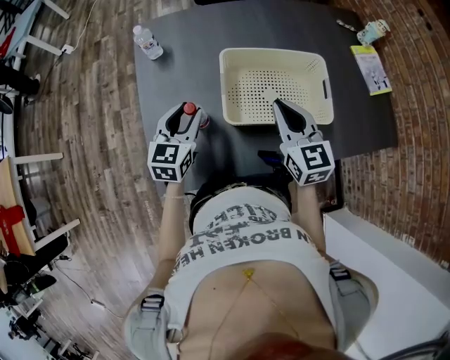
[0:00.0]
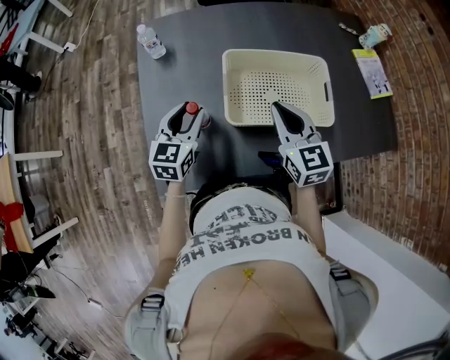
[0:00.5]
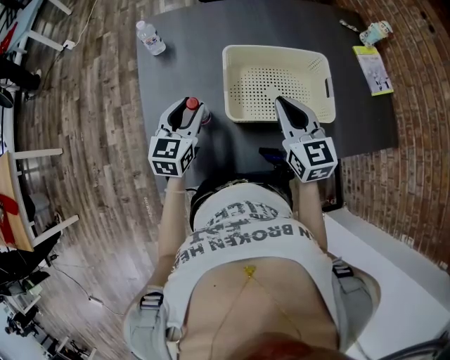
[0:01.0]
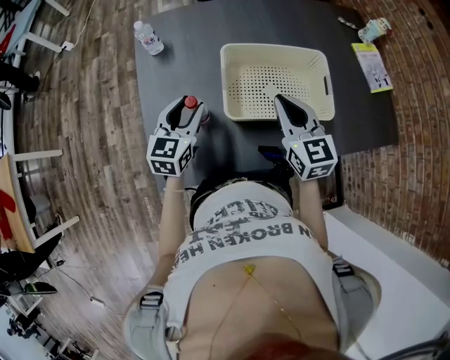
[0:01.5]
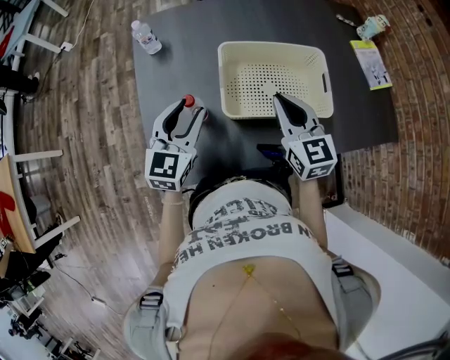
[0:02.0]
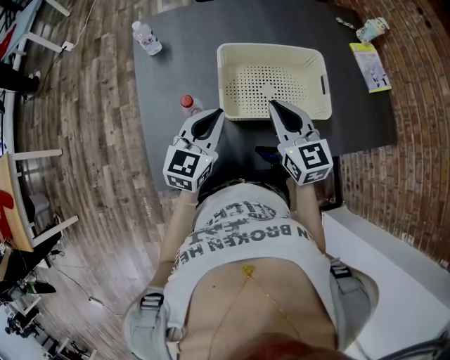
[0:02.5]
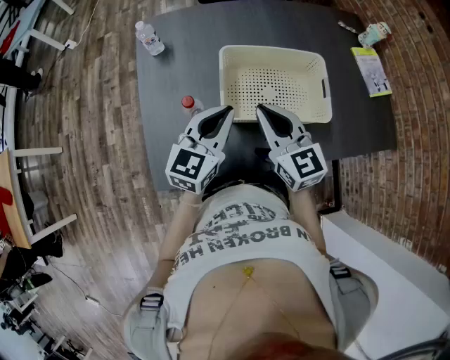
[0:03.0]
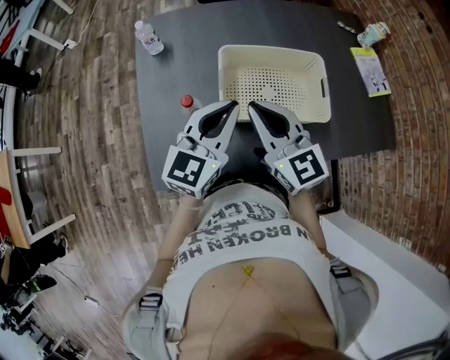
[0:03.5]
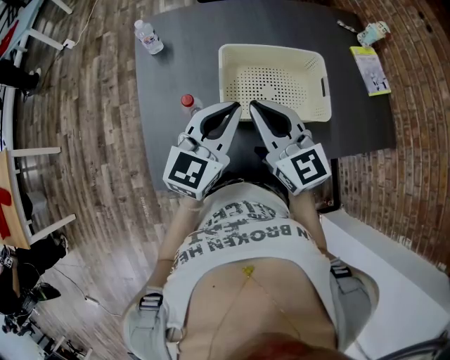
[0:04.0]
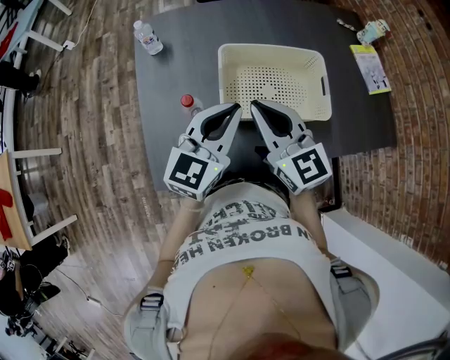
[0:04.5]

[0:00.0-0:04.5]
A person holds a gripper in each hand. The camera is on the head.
0:00.0 to 0:02.0: The left gripper ends up approximately 5 cm from where it was.
0:02.0 to 0:04.5: The left gripper goes some 10 cm to the right and upward, and closes up. Meanwhile the right gripper shifts roughly 10 cm to the left and upward.

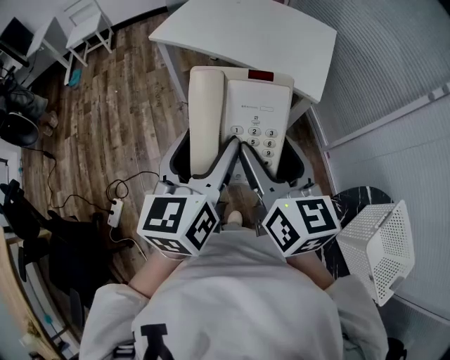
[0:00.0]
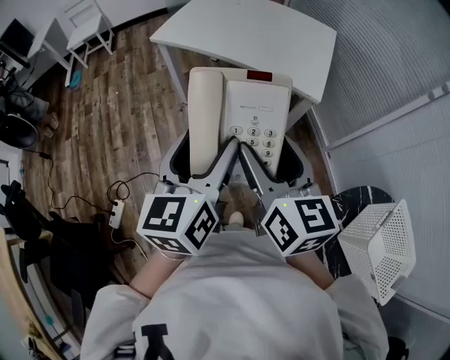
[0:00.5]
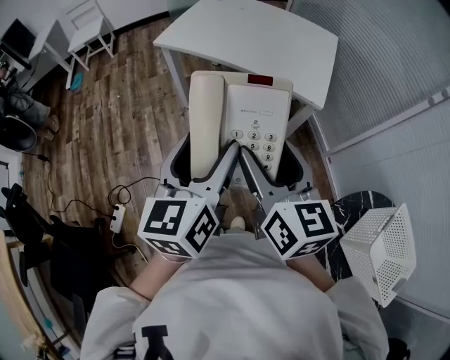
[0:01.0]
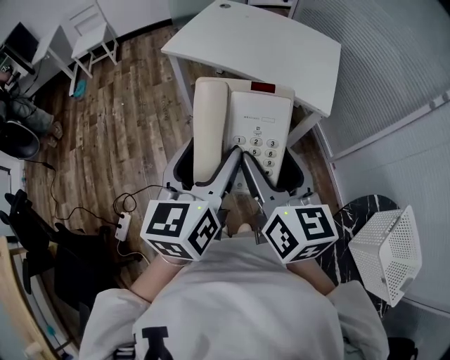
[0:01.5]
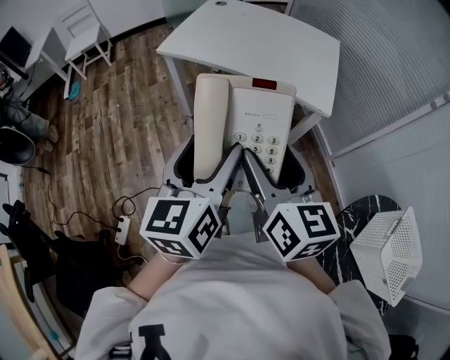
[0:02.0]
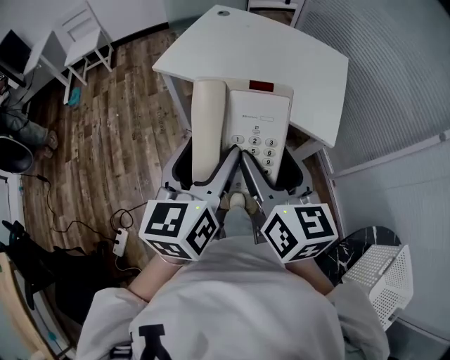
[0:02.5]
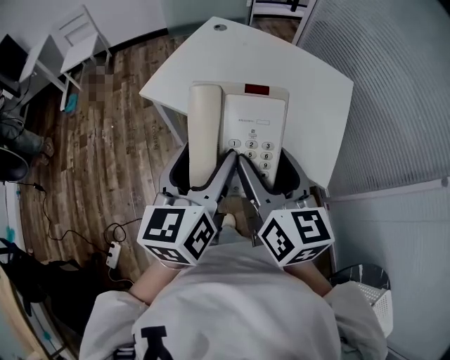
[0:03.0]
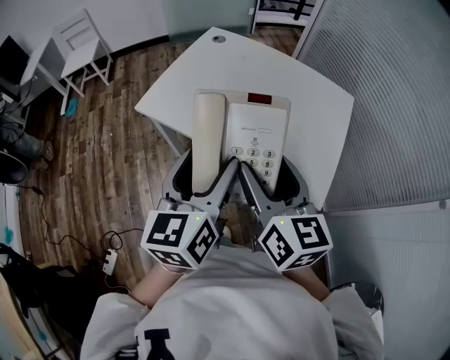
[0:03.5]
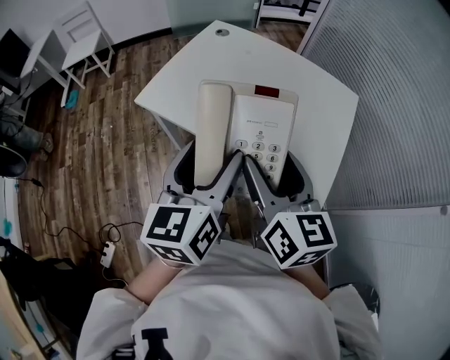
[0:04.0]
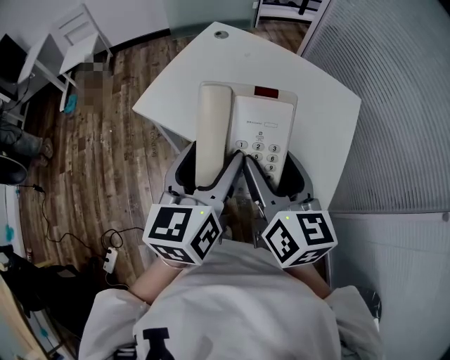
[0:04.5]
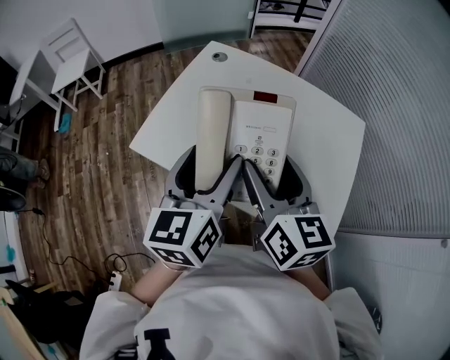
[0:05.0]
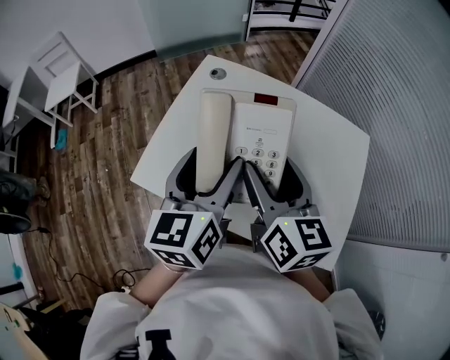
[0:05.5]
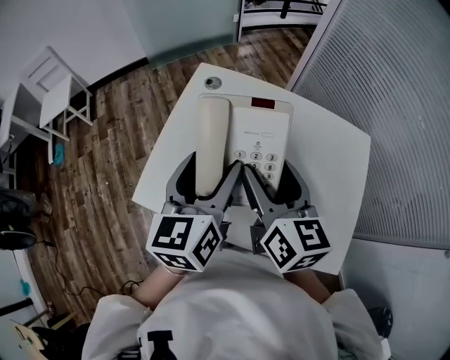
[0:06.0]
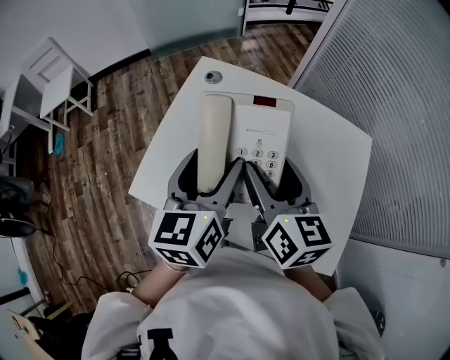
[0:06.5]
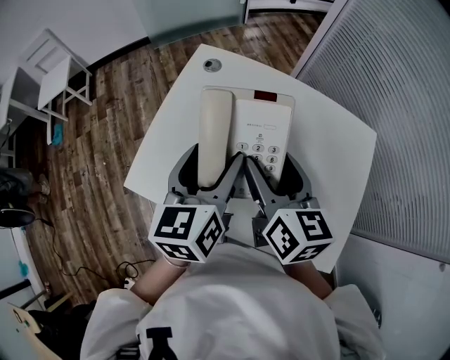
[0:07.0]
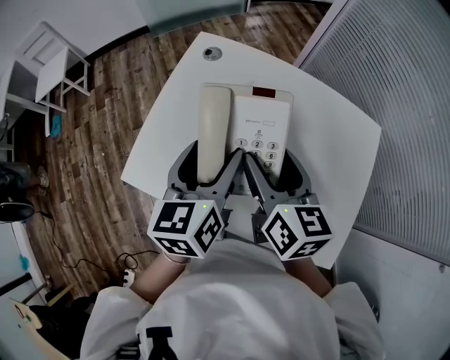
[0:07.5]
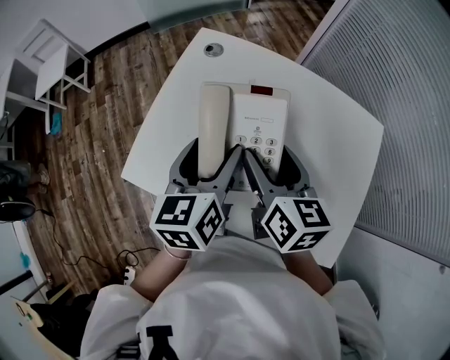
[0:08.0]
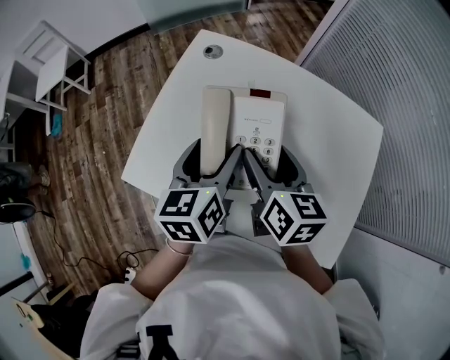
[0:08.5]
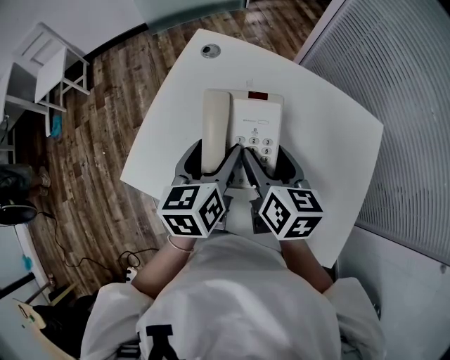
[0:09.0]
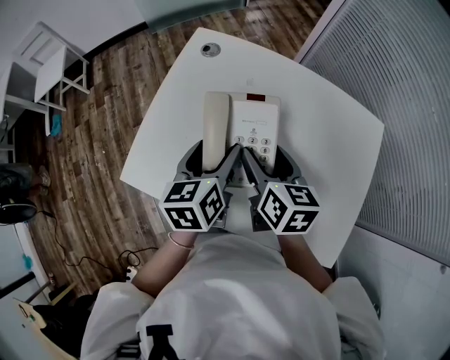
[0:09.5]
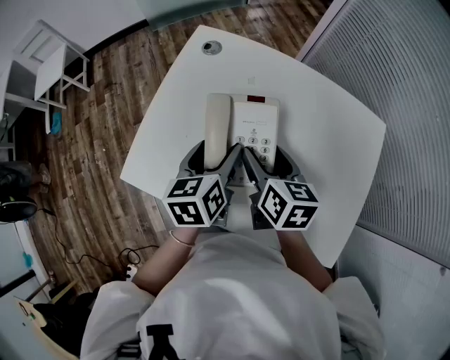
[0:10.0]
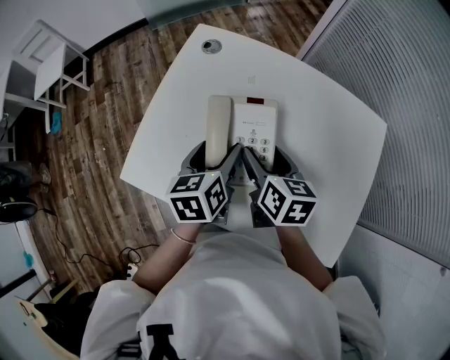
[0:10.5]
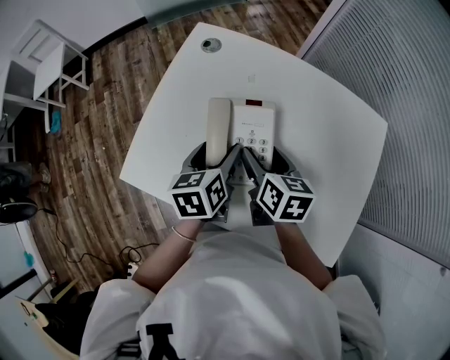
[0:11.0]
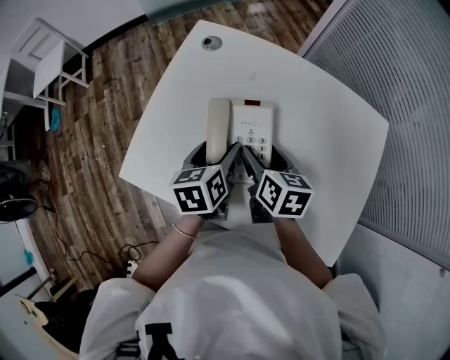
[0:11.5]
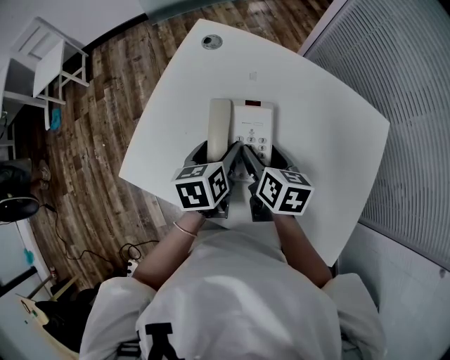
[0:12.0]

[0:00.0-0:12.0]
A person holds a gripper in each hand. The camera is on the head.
0:00.0 to 0:02.0: The two grippers go roughly 5 cm to the left.
0:02.0 to 0:04.0: Both grippers move forward, roughly 30 cm.
0:04.0 to 0:06.0: Both grippers move forward, some 30 cm.
0:06.0 to 0:08.0: Both grippers move downward, some 5 cm.
0:08.0 to 0:10.0: Both grippers move downward, some 10 cm.
0:10.0 to 0:12.0: Both grippers move downward, some 5 cm.

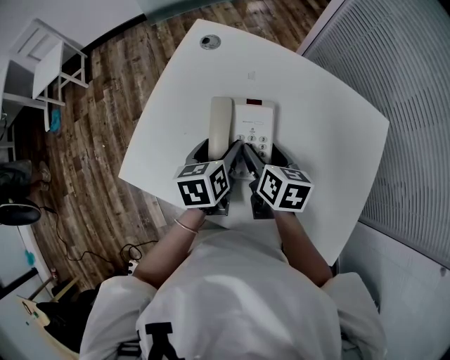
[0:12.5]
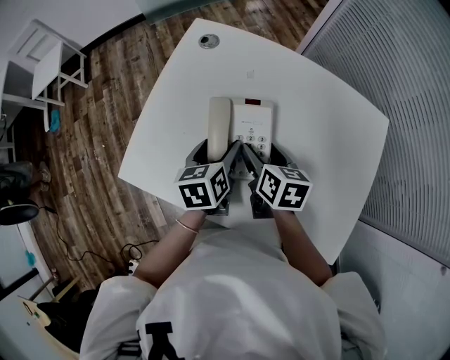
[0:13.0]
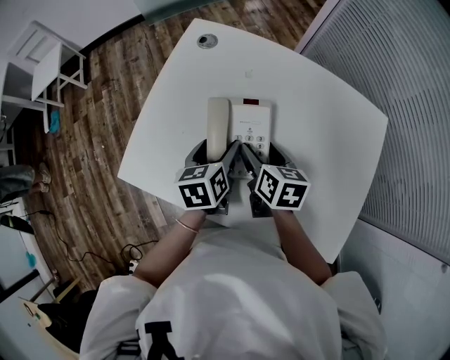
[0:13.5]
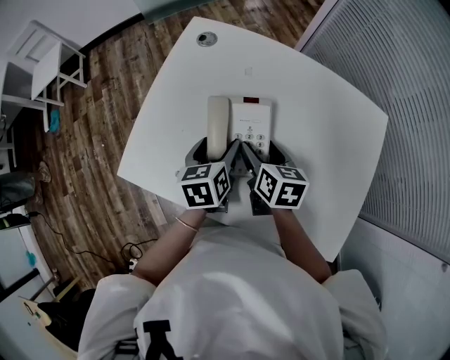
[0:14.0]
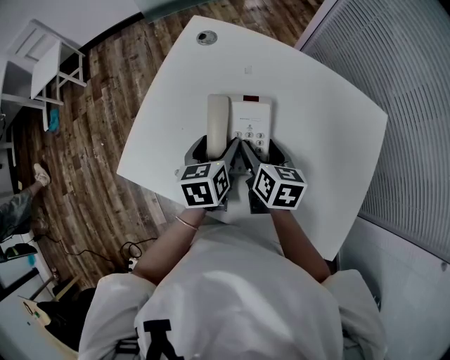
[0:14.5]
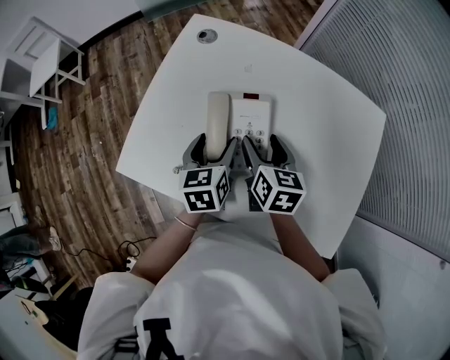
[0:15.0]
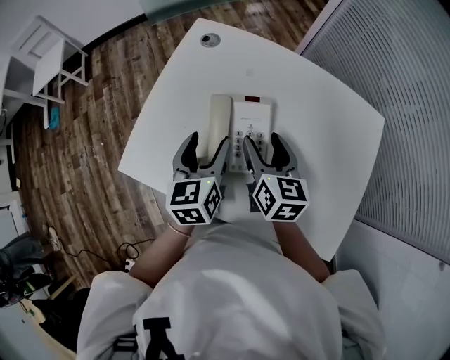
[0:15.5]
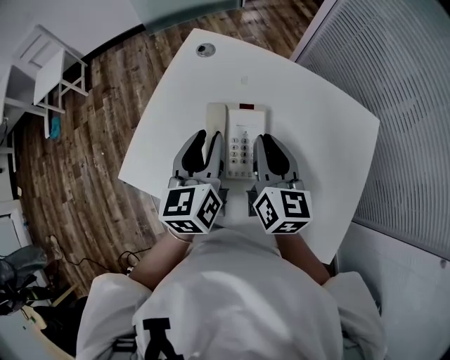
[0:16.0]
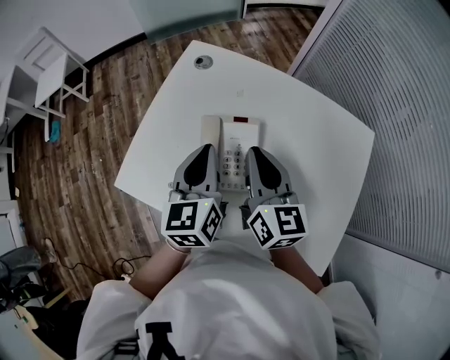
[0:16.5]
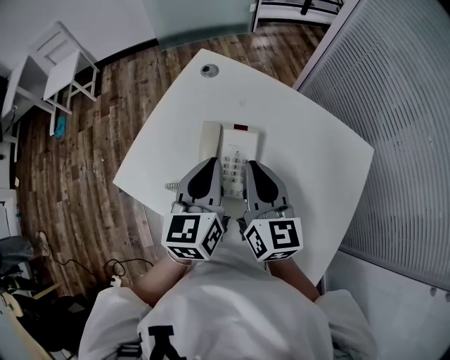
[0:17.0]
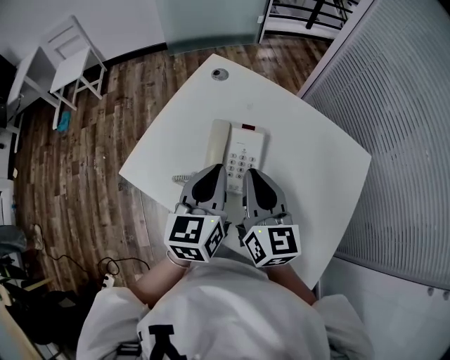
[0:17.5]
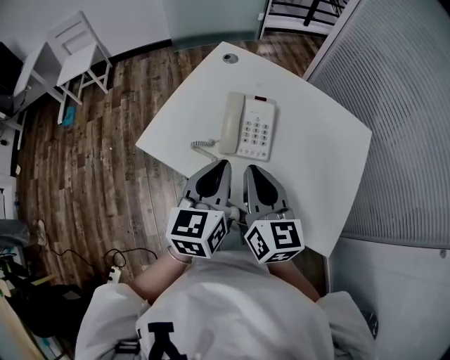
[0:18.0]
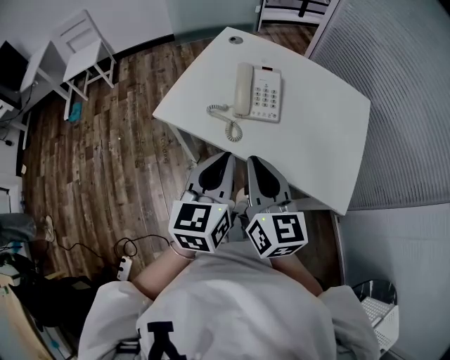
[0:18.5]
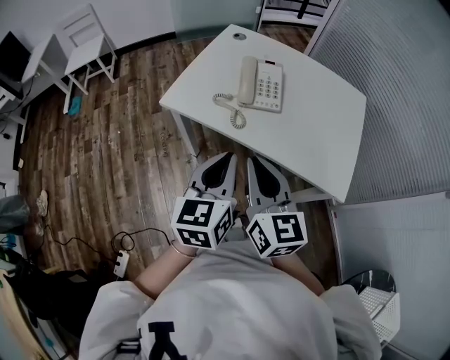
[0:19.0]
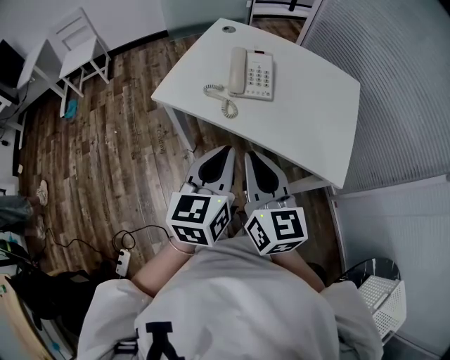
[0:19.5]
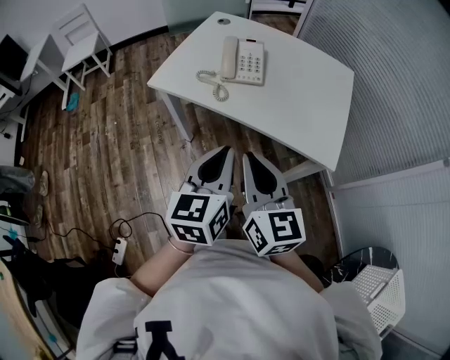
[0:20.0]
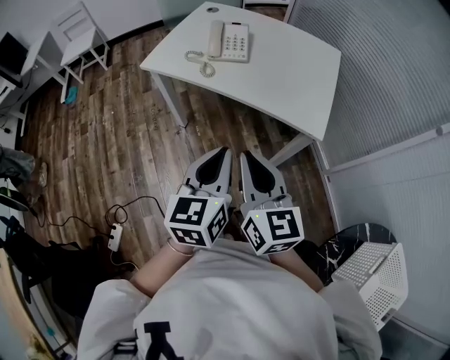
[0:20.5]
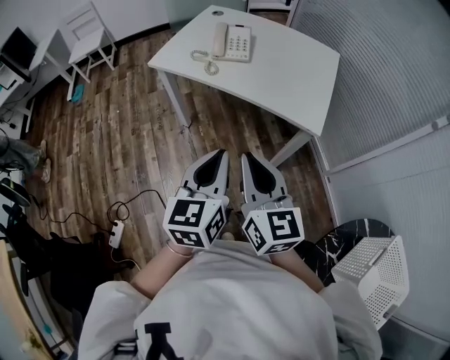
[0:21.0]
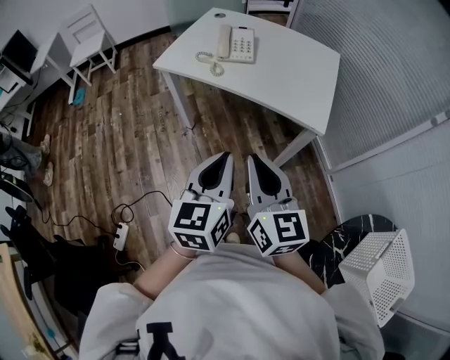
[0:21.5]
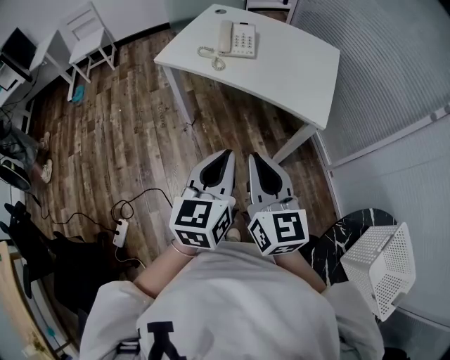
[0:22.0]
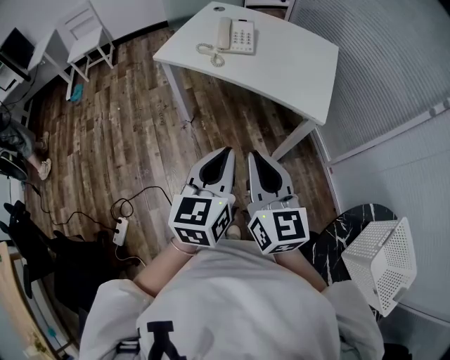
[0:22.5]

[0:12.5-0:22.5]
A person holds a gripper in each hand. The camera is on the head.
0:12.5 to 0:14.5: There are only small adjustments of the grippers.
0:14.5 to 0:16.5: The grippers both shift upward by some 15 cm. The right gripper rotates about 30 degrees, and closes its fingers, while the left gripper swivels roughly 30 degrees, and closes its fingers.
0:16.5 to 0:18.5: The grippers both shift backward by approximately 30 cm.
0:18.5 to 0:20.5: The two grippers go about 25 cm backward.
0:20.5 to 0:22.5: The two grippers go roughly 10 cm backward.

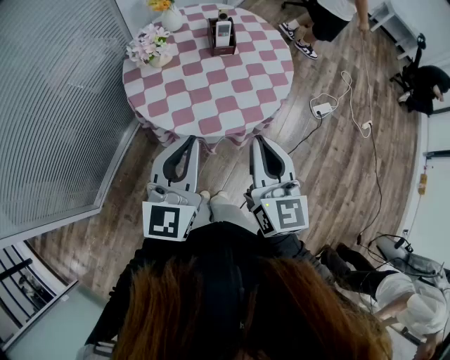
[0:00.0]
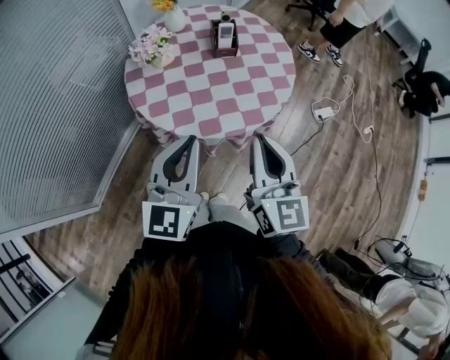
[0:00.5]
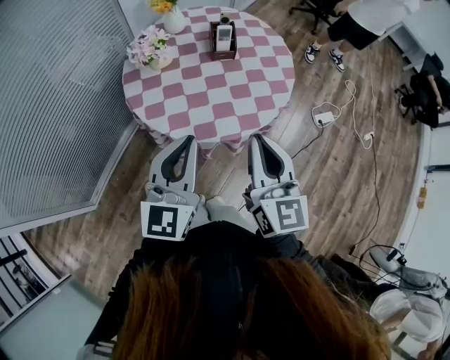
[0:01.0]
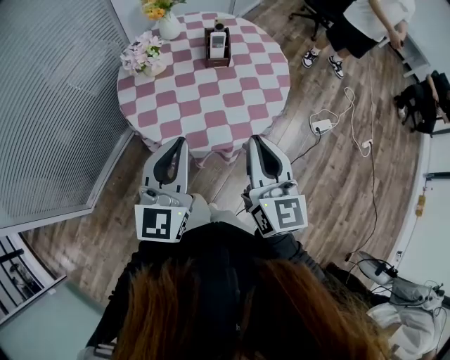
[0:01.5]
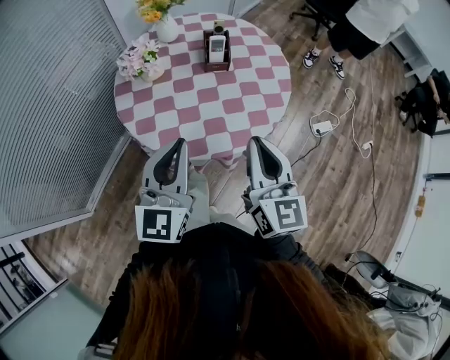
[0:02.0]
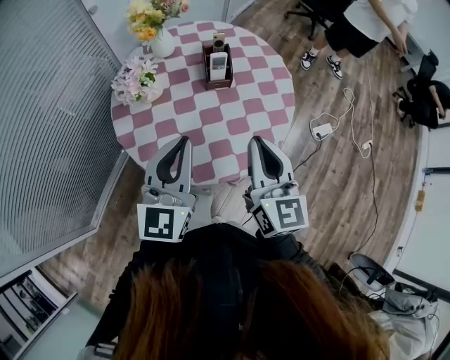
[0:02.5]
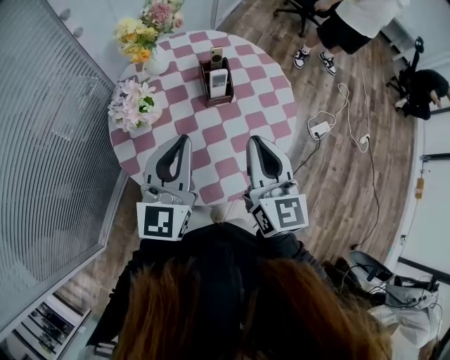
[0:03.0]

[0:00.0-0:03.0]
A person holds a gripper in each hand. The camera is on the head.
0:00.0 to 0:01.5: The left gripper moves about 5 cm. Meanwhile the right gripper shifts approximately 5 cm forward.
0:01.5 to 0:03.0: Both grippers travel together forward, about 20 cm.
